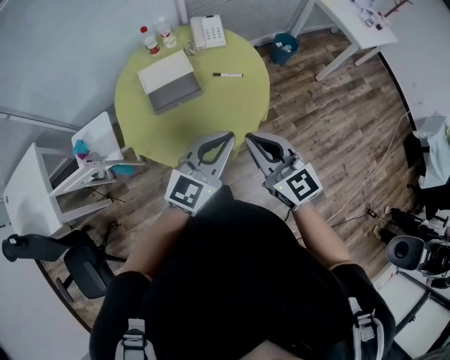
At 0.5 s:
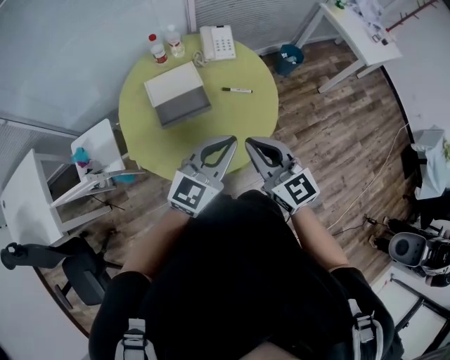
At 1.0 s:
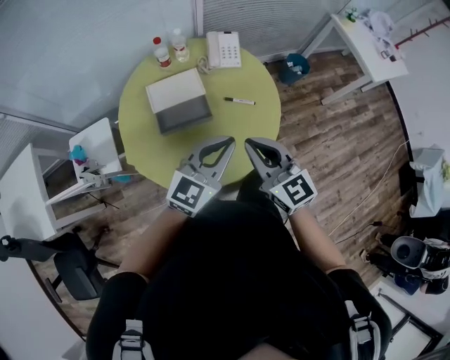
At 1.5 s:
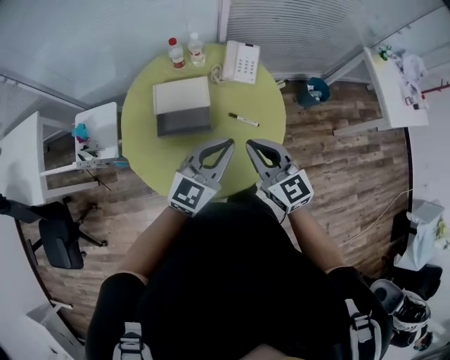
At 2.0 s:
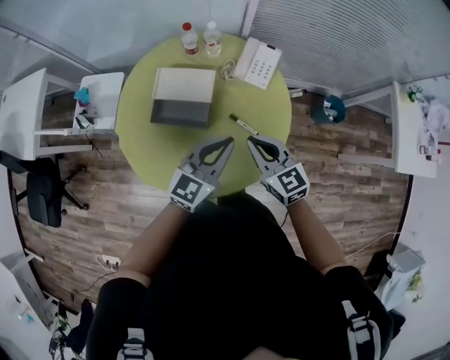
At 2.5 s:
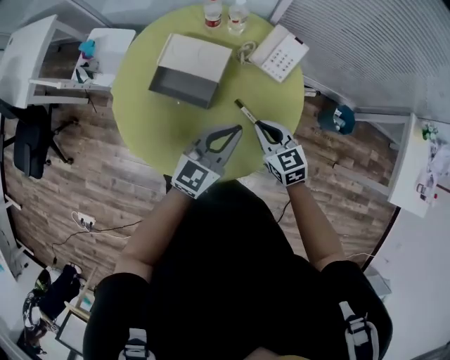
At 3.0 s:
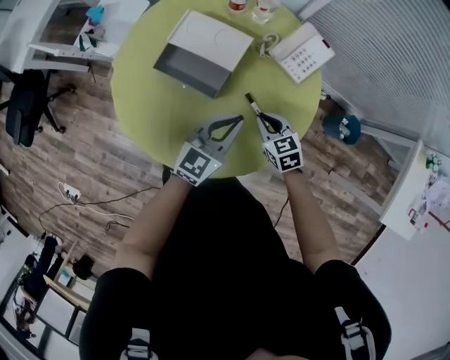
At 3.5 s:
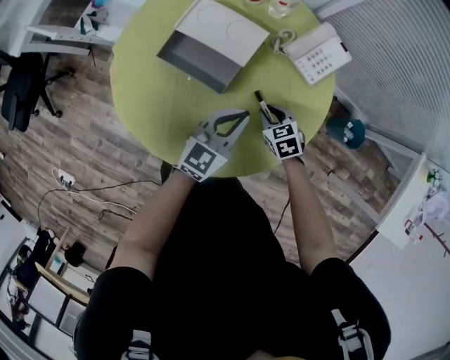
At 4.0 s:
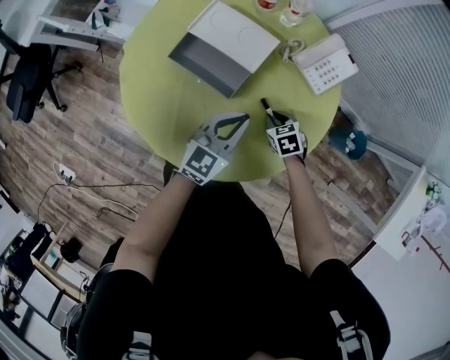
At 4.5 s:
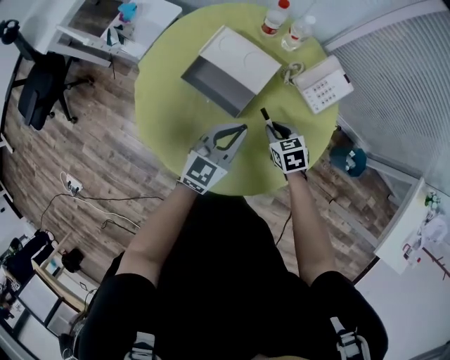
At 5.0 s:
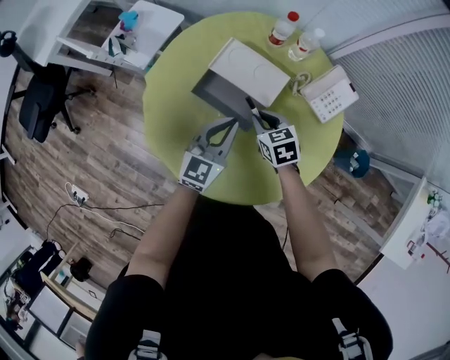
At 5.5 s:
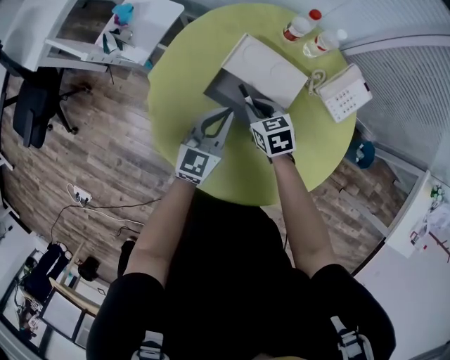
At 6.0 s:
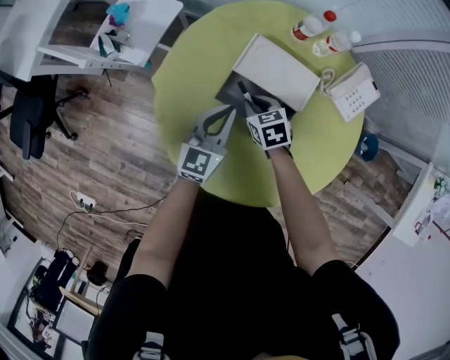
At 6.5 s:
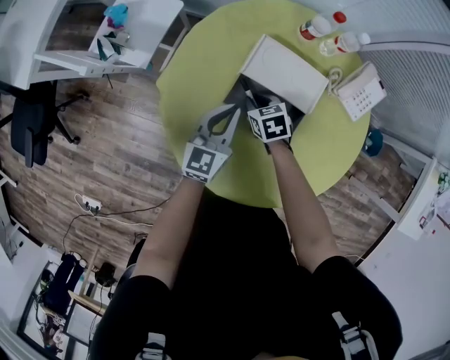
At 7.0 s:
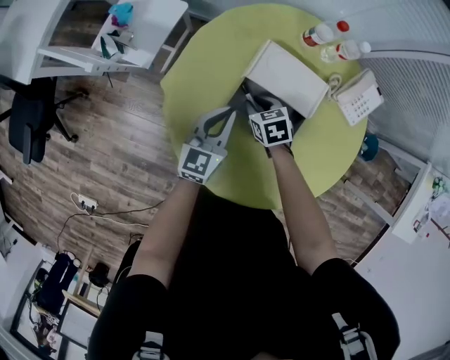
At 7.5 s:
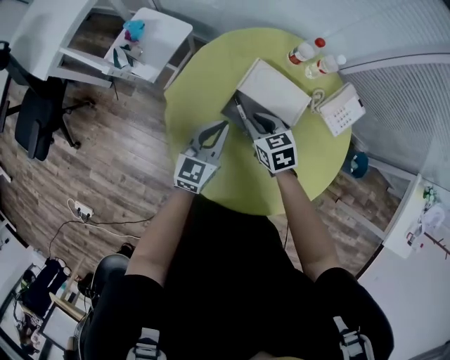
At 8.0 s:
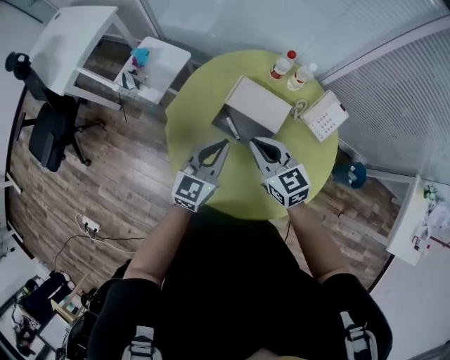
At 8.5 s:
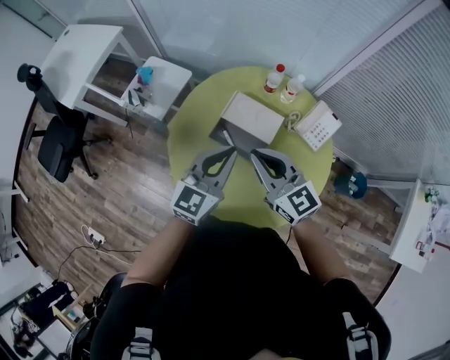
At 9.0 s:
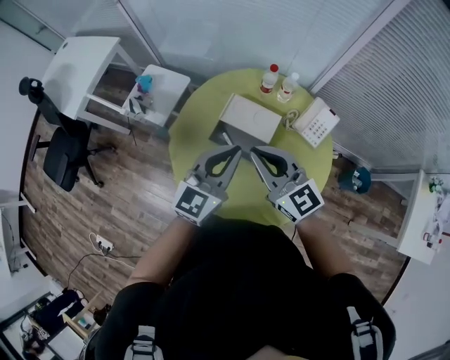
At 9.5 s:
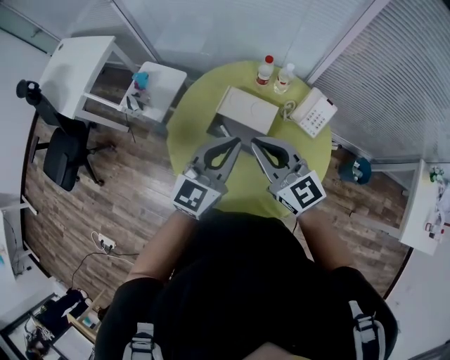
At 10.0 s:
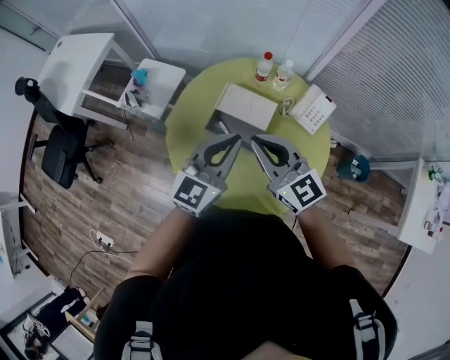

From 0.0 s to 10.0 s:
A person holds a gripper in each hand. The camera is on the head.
From 0.0 s to 2.0 s: The right gripper ends up about 35 cm from where it was, and turns by approximately 30 degrees. Meanwhile the left gripper ends up approximately 30 cm from where it was, and swivels some 30 degrees.
From 2.0 s to 4.0 s: The right gripper heads downward, covering approximately 35 cm, and points its fingers some 40 degrees further downward. The left gripper heads downward, covering about 20 cm, and turns by approximately 20 degrees.
From 4.0 s to 6.0 s: The grippers both shift to the left and forward by some 25 cm.
From 6.0 s to 8.0 s: The left gripper heads upward and backward, covering about 15 cm, while the right gripper is displaced upward by roughly 25 cm, and tilts its fingers approximately 30 degrees upward.
From 8.0 s to 10.0 s: The right gripper shifts about 15 cm upward, and turns by approximately 20 degrees; the left gripper travels upward and to the right by about 15 cm.

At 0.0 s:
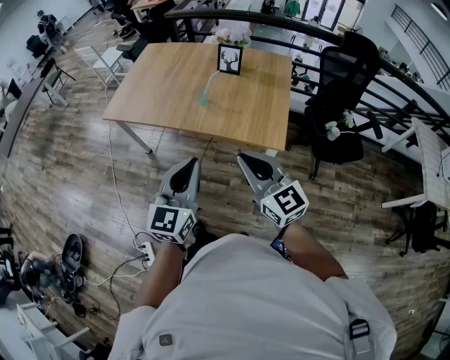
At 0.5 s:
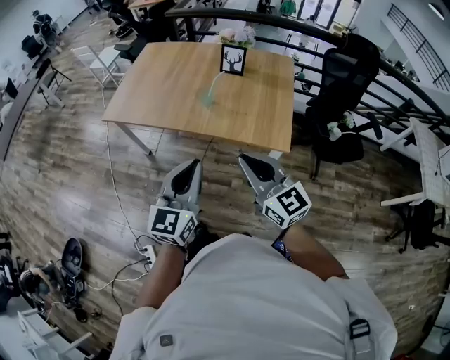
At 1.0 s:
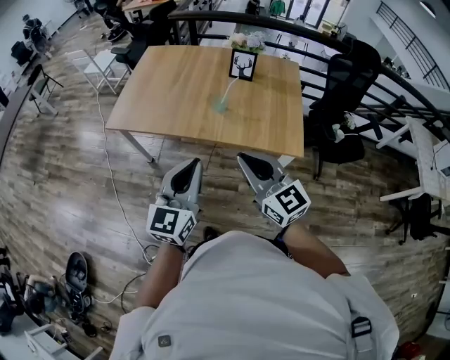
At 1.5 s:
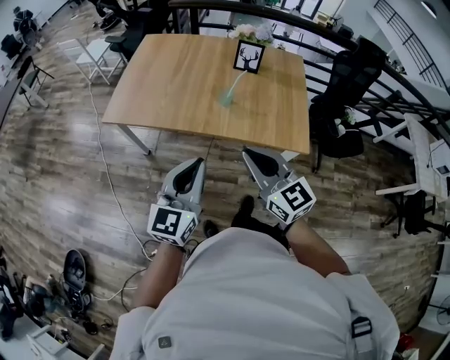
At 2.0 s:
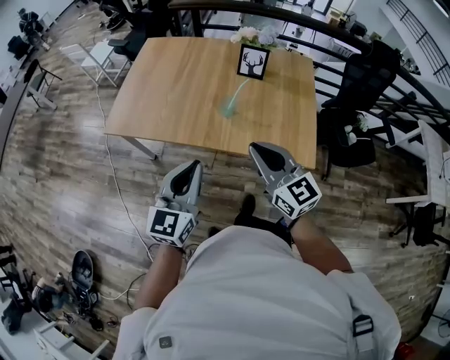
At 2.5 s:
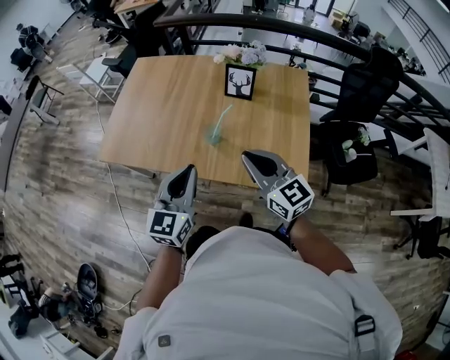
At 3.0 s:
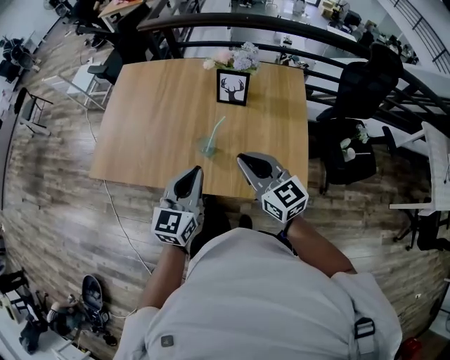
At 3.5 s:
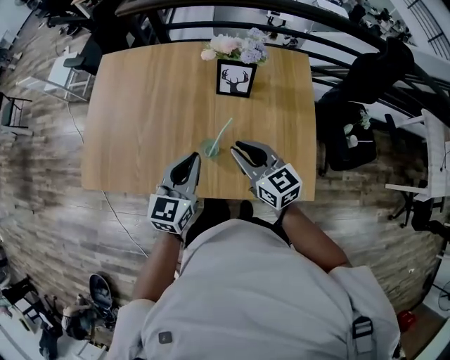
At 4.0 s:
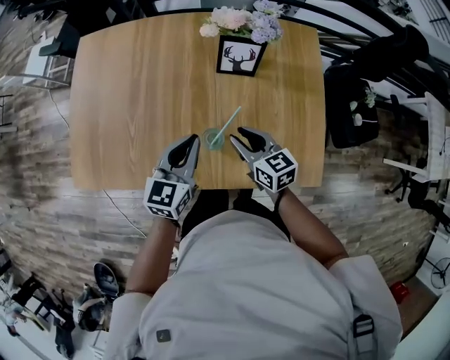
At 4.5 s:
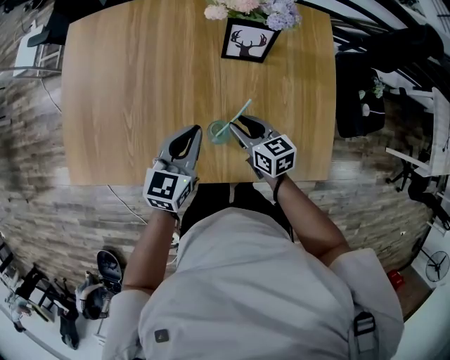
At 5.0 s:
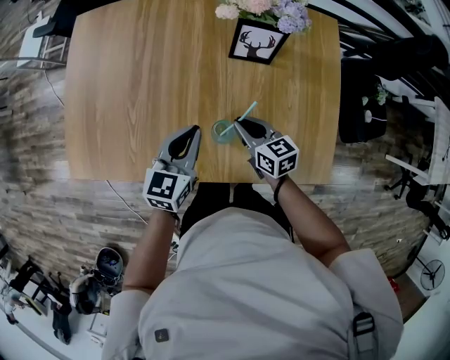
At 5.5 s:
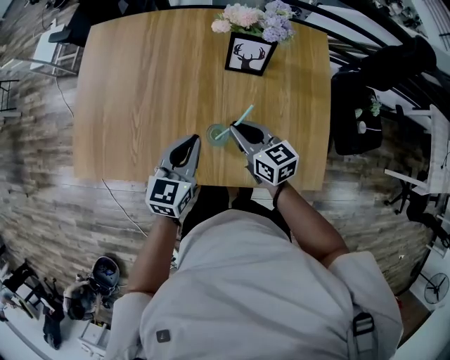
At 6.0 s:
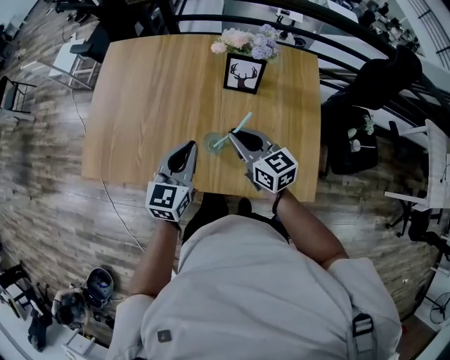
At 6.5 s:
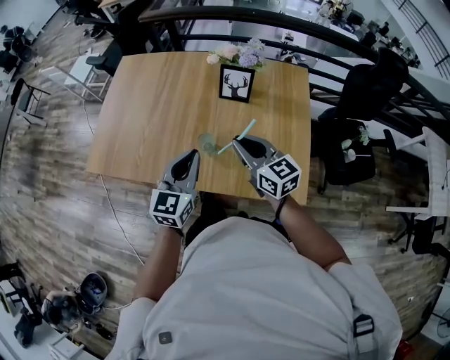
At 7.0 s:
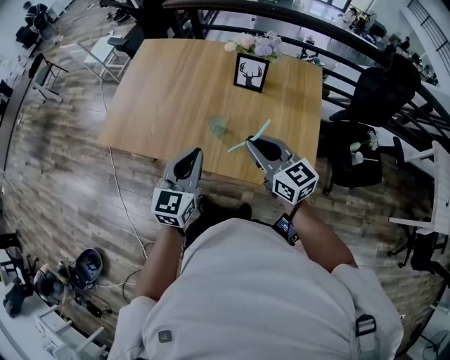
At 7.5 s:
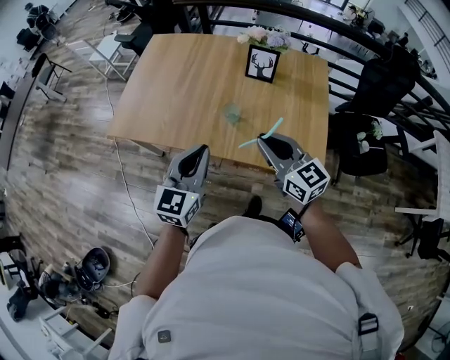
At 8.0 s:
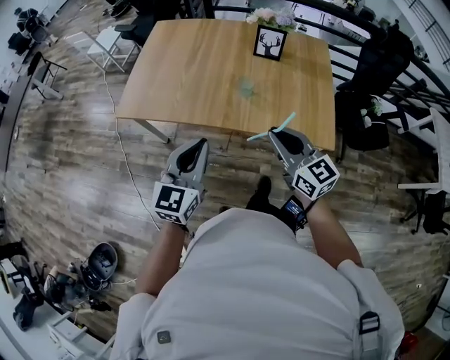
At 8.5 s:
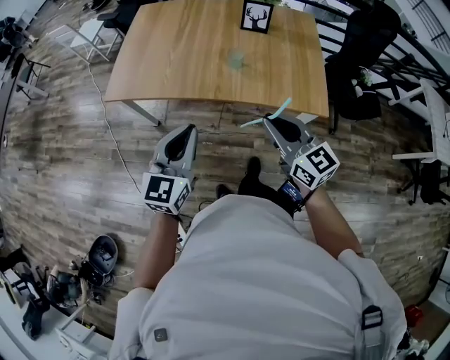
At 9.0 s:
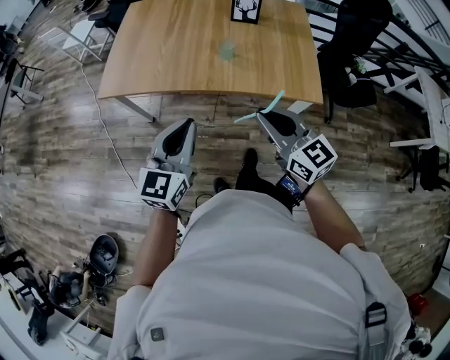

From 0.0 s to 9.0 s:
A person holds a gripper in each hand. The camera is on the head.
From 0.0 s to 2.0 s: The two grippers go approximately 25 cm forward and to the left.
From 2.0 s to 4.5 s: Both grippers move forward and downward, approximately 50 cm. The left gripper rotates some 30 degrees; the right gripper turns by about 40 degrees, and opens up.
From 4.5 s to 7.0 s: The right gripper goes approximately 30 cm upward and backward, changes its angle by some 30 degrees, and closes. The left gripper moves backward and upward, roughly 30 cm, and swivels roughly 30 degrees.
From 7.0 s to 9.0 s: The grippers both shift backward and to the left by approximately 30 cm.

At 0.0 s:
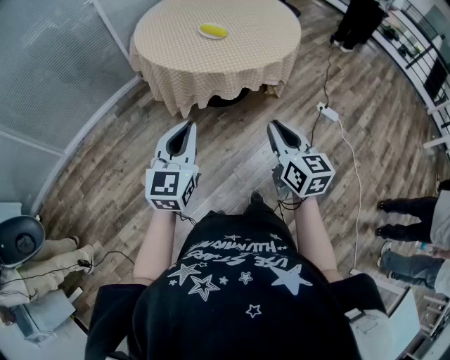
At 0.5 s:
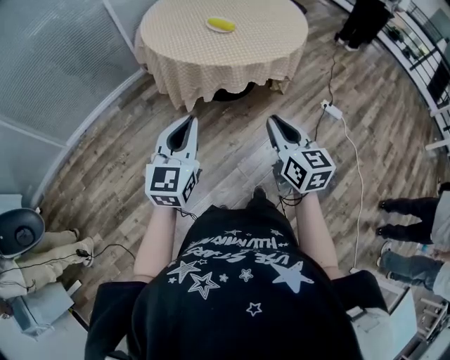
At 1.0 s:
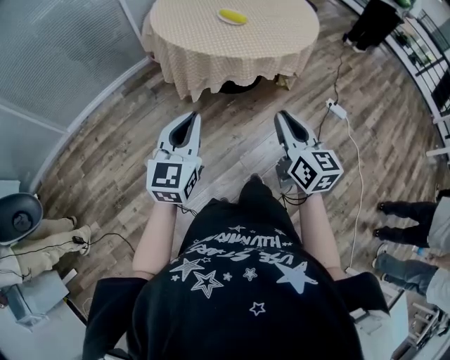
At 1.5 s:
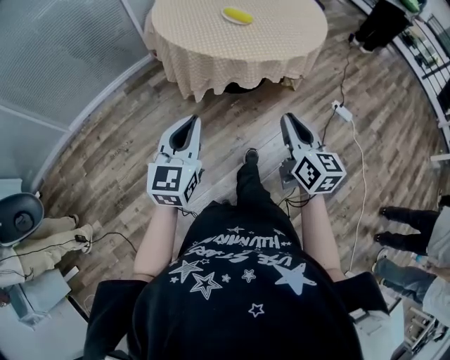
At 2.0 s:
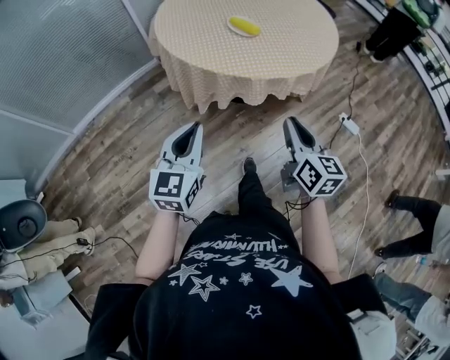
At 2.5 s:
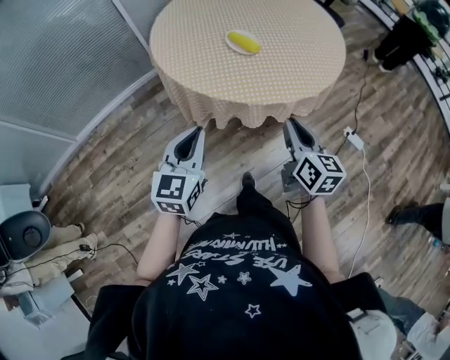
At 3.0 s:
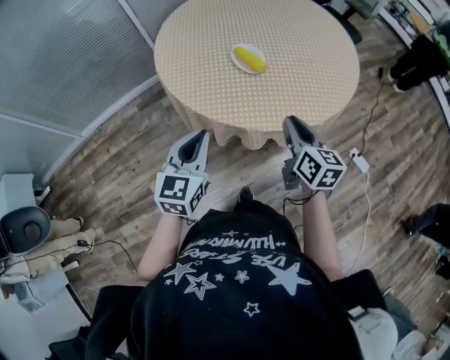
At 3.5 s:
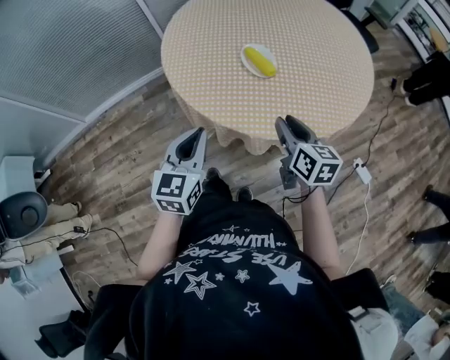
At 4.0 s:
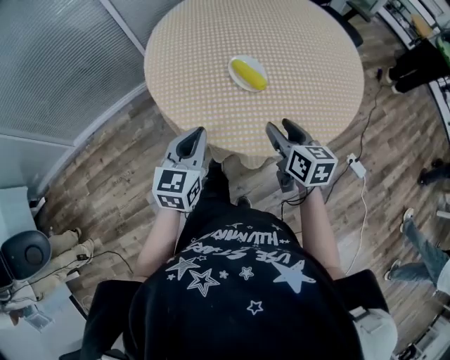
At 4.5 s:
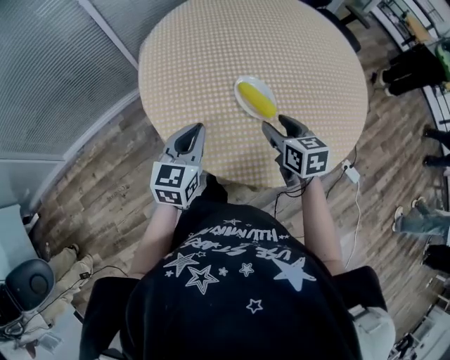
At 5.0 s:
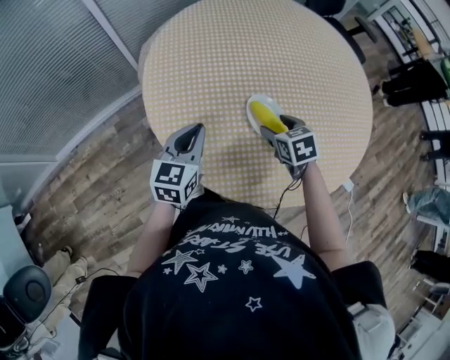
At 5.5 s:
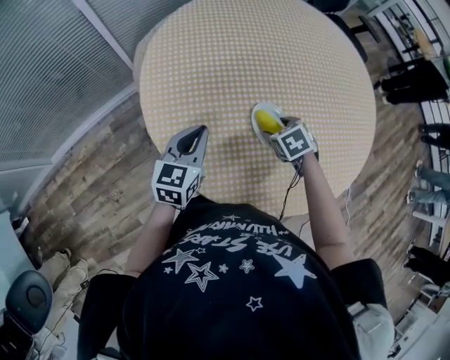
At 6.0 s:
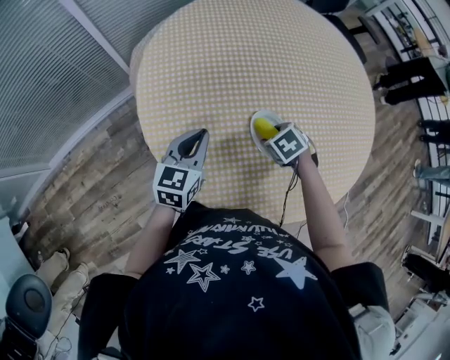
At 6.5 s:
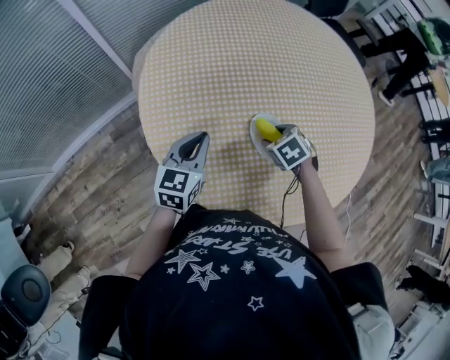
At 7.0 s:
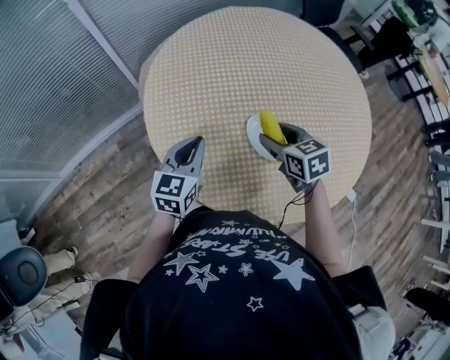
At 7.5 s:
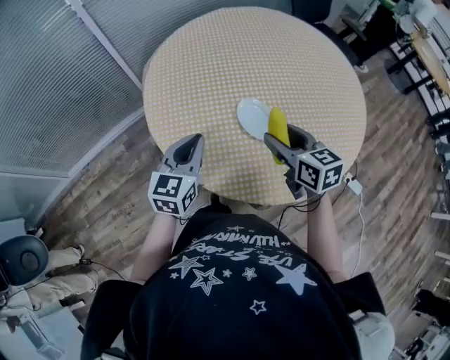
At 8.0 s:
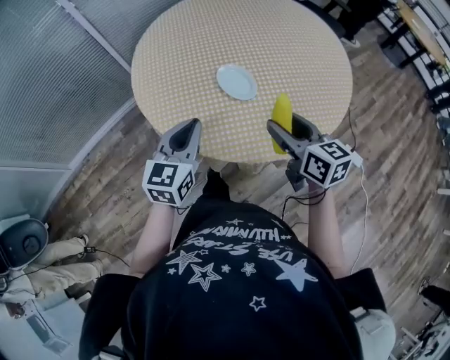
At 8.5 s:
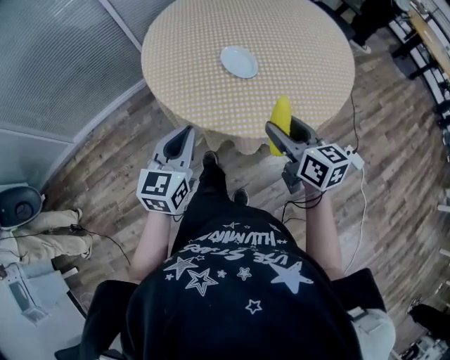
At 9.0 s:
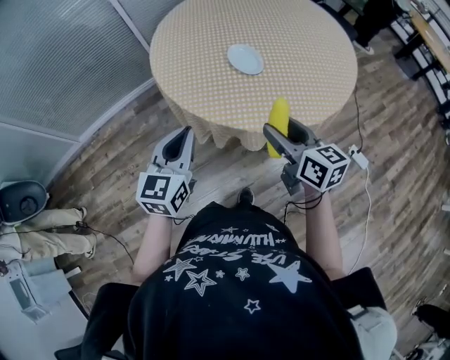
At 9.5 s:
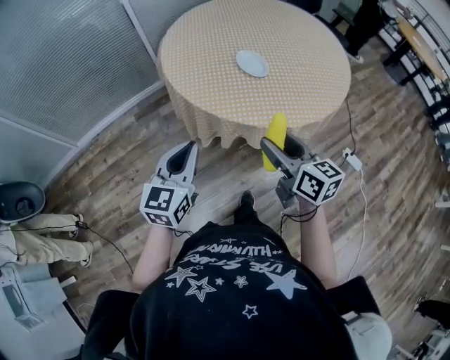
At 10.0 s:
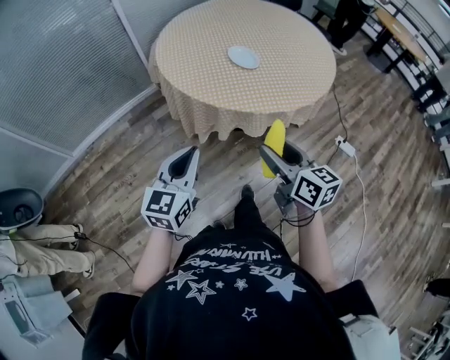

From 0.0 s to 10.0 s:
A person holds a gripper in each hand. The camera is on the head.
From 0.0 s to 2.0 s: The grippers both shift forward by about 10 cm.
From 2.0 s to 4.0 s: The grippers both shift forward by about 30 cm. The right gripper opens up.
From 4.0 s to 6.0 s: The right gripper ends up roughly 30 cm from where it was, and tips its fingers downward by some 50 degrees, while the left gripper changes place by some 30 cm.
From 6.0 s to 8.0 s: The left gripper moves roughly 25 cm. The right gripper shifts by approximately 30 cm, and tips its fingers upward by about 60 degrees.
From 8.0 s to 10.0 s: The two grippers go about 30 cm backward and to the left.
